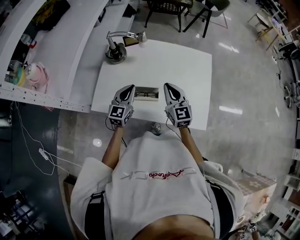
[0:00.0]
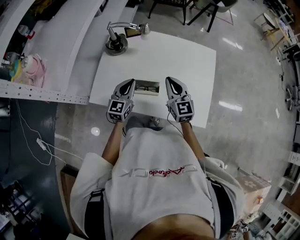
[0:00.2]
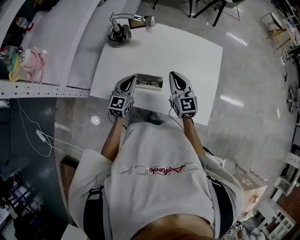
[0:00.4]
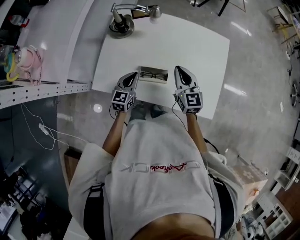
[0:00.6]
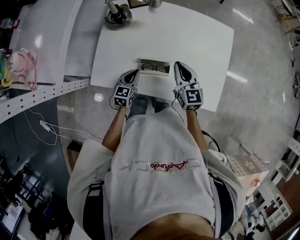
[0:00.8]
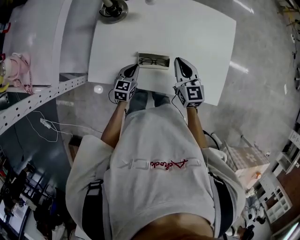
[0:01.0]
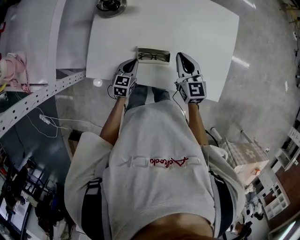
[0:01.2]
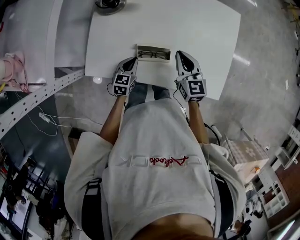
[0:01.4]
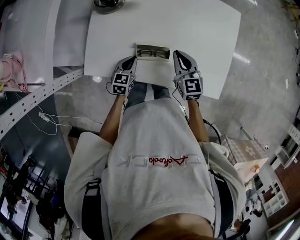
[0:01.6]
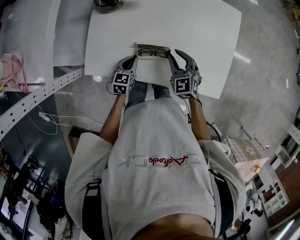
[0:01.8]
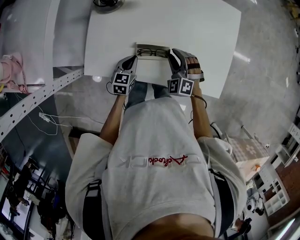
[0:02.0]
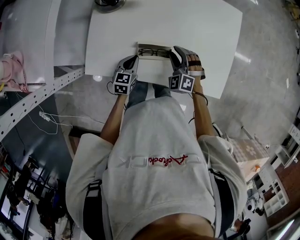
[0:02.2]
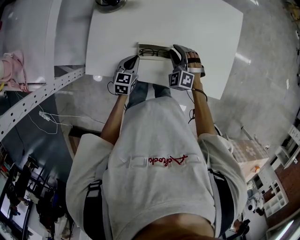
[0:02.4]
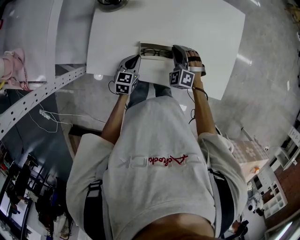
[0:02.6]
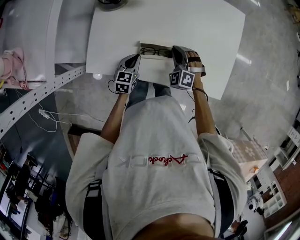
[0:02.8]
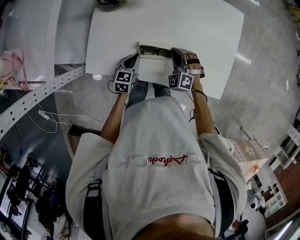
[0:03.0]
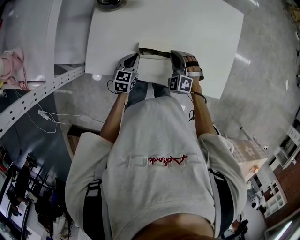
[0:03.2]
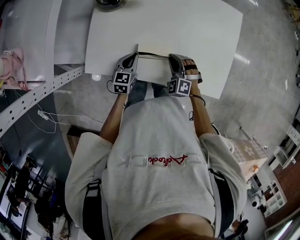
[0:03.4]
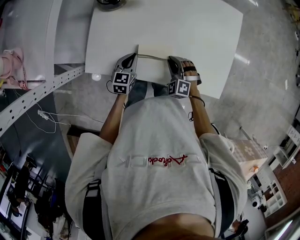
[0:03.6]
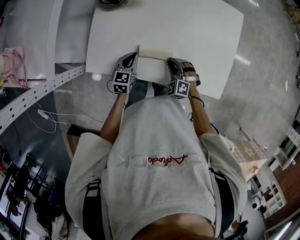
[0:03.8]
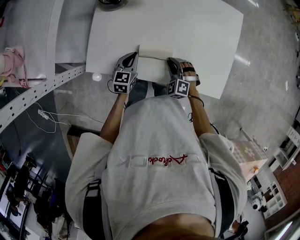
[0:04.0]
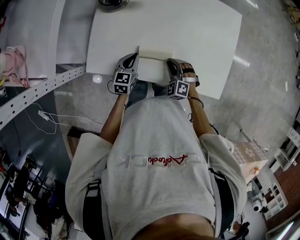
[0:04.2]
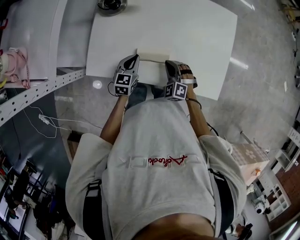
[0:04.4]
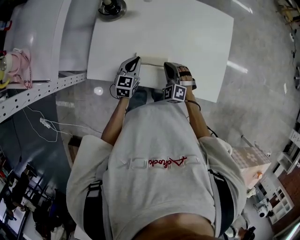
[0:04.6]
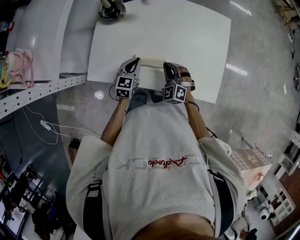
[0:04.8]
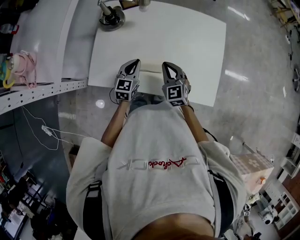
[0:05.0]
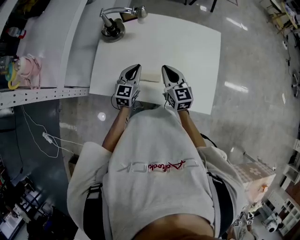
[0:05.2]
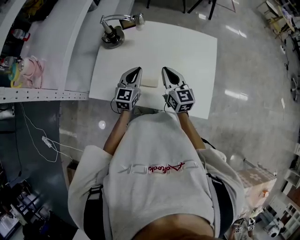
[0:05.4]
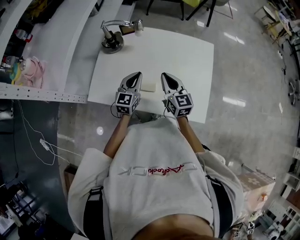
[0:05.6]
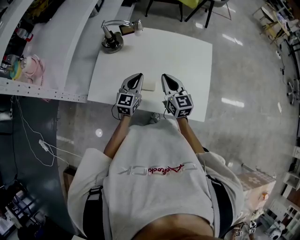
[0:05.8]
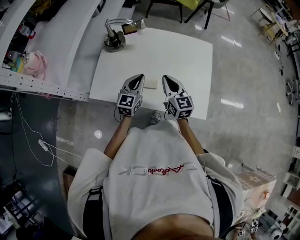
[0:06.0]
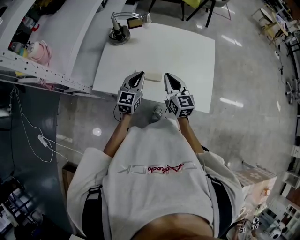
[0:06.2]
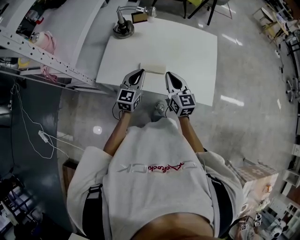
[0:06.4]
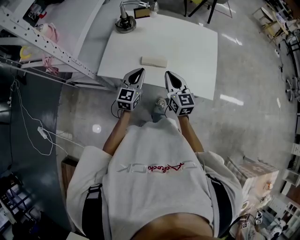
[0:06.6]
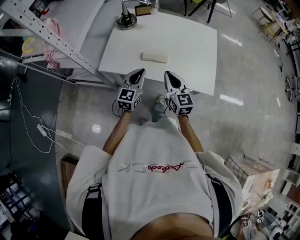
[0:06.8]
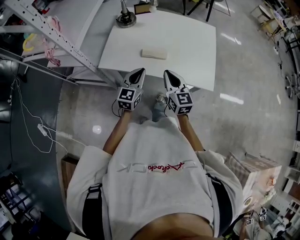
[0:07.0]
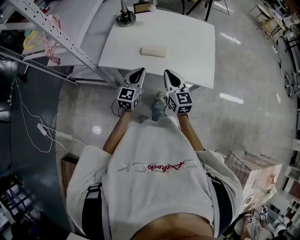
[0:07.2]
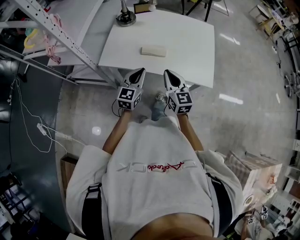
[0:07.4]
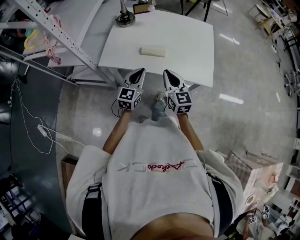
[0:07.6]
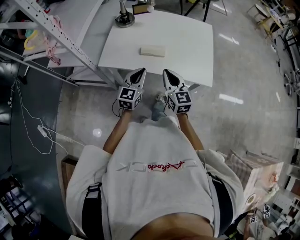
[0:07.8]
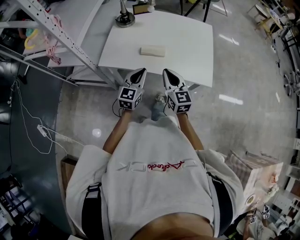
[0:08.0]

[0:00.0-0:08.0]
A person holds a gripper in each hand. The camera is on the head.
0:00.0 to 0:01.6: The left gripper is displaced downward by approximately 20 cm, and turns by roughly 30 degrees. The right gripper goes approximately 10 cm downward.
0:01.6 to 0:03.2: The right gripper is displaced downward by roughly 10 cm, rolls counterclockwise, seen from behind, by about 60 degrees, and opens, then closes again.
0:03.2 to 0:04.8: The left gripper moves upward, about 5 cm.
0:04.8 to 0:06.4: Both grippers travel together upward and backward, about 15 cm. The right gripper rolls clockwise, seen from behind, by roughly 50 degrees.
0:06.4 to 0:08.0: The two grippers go some 10 cm backward.

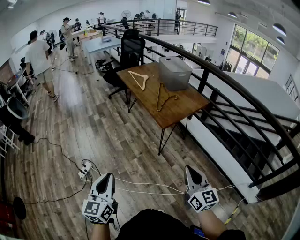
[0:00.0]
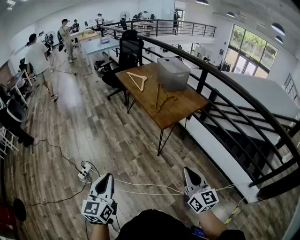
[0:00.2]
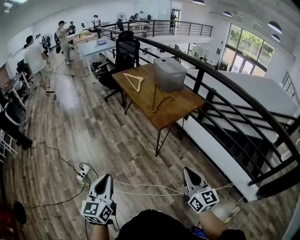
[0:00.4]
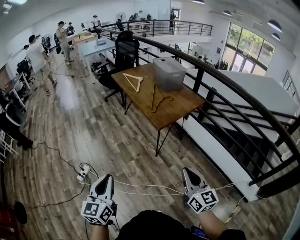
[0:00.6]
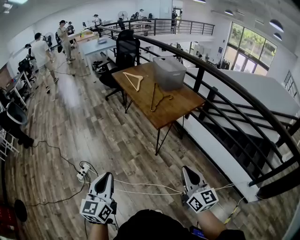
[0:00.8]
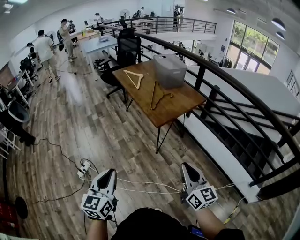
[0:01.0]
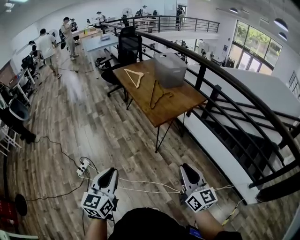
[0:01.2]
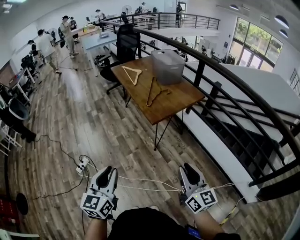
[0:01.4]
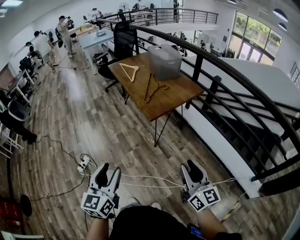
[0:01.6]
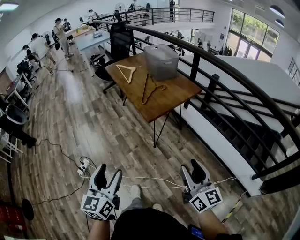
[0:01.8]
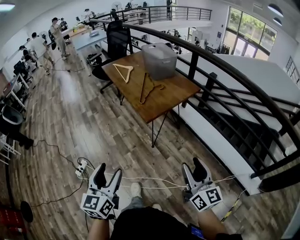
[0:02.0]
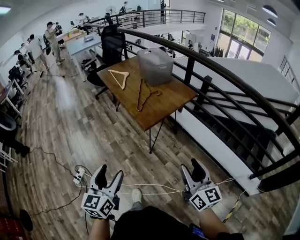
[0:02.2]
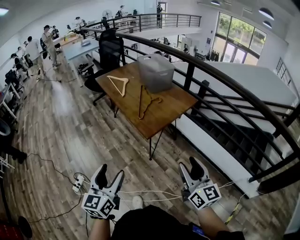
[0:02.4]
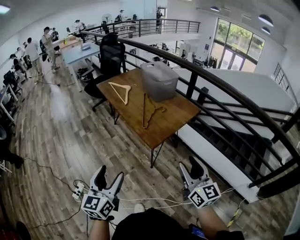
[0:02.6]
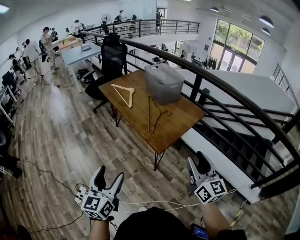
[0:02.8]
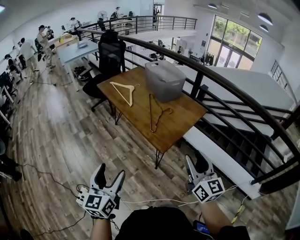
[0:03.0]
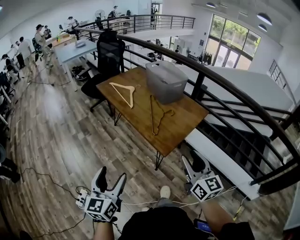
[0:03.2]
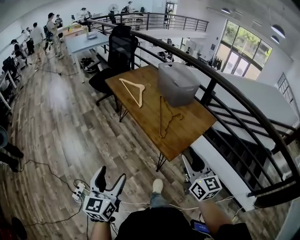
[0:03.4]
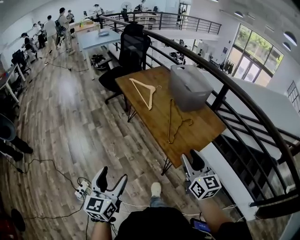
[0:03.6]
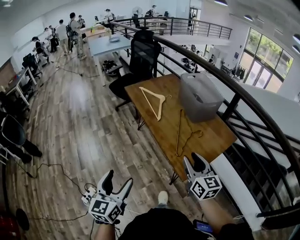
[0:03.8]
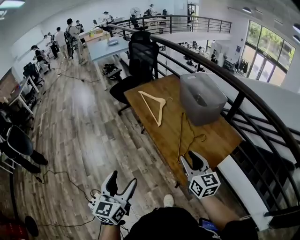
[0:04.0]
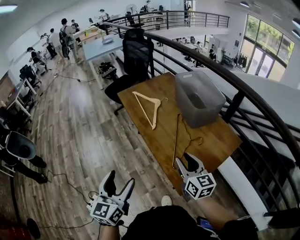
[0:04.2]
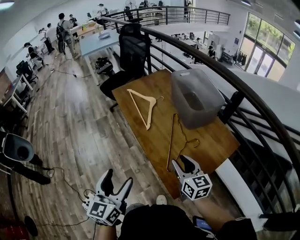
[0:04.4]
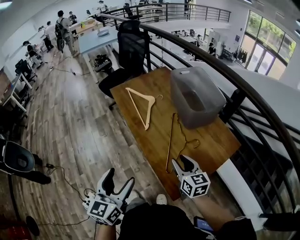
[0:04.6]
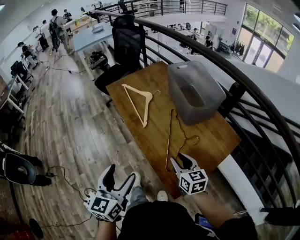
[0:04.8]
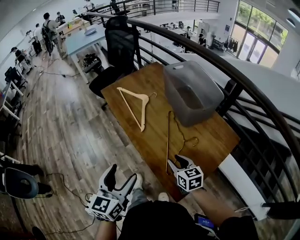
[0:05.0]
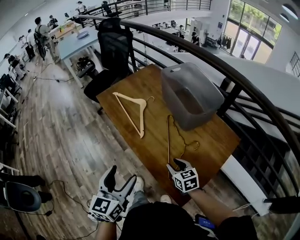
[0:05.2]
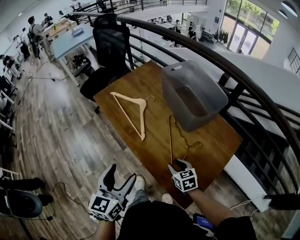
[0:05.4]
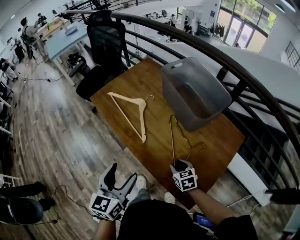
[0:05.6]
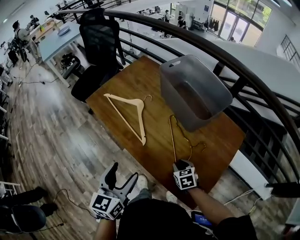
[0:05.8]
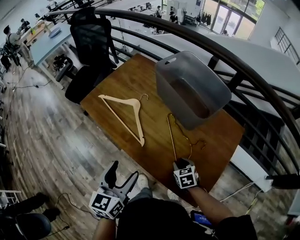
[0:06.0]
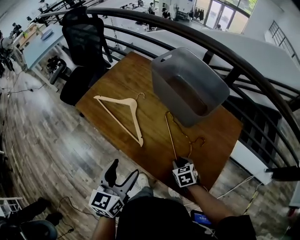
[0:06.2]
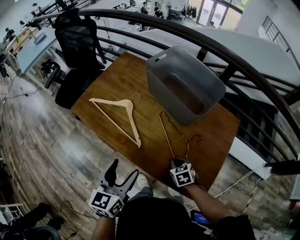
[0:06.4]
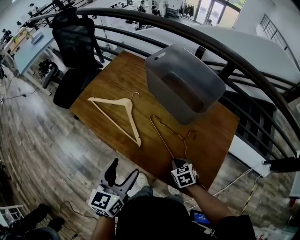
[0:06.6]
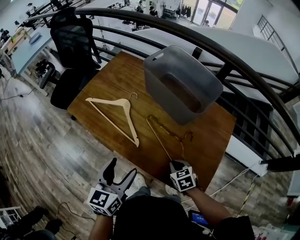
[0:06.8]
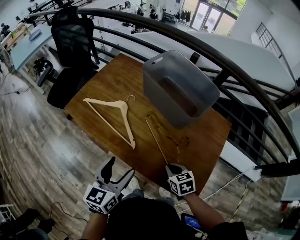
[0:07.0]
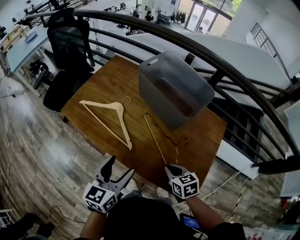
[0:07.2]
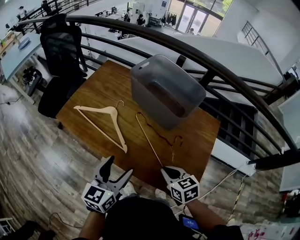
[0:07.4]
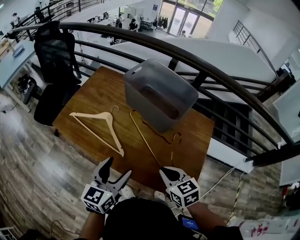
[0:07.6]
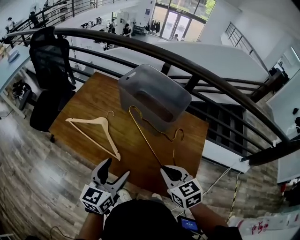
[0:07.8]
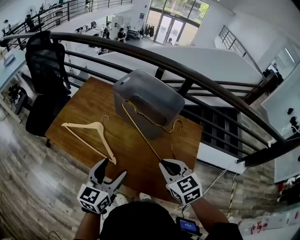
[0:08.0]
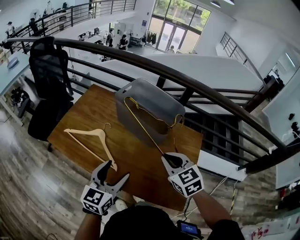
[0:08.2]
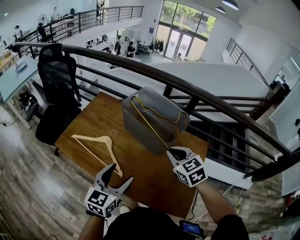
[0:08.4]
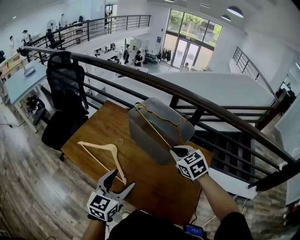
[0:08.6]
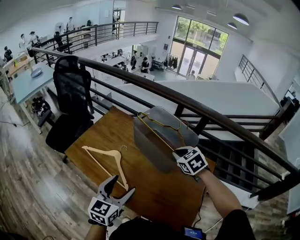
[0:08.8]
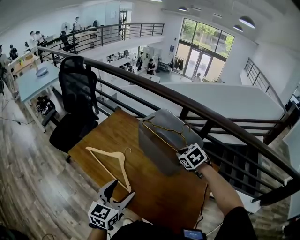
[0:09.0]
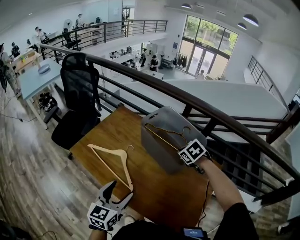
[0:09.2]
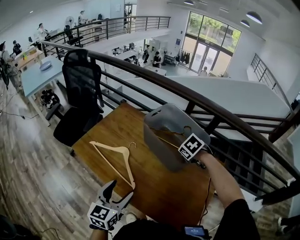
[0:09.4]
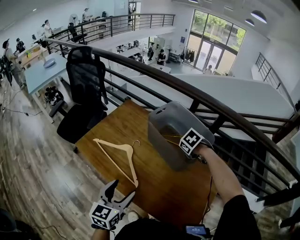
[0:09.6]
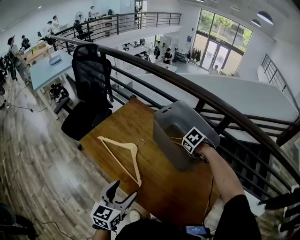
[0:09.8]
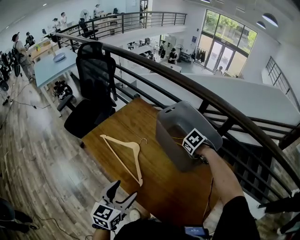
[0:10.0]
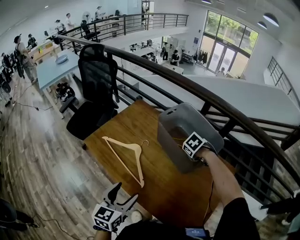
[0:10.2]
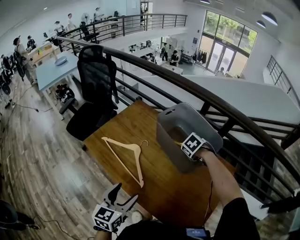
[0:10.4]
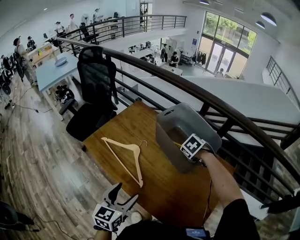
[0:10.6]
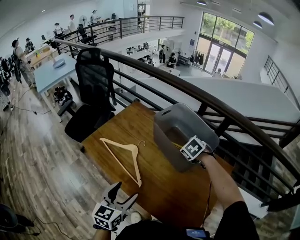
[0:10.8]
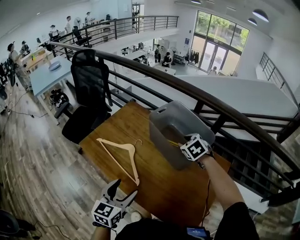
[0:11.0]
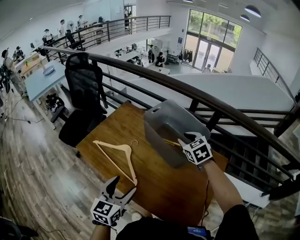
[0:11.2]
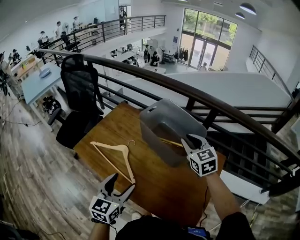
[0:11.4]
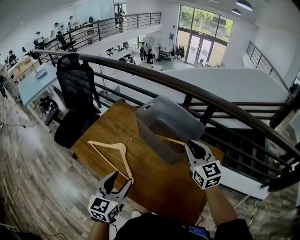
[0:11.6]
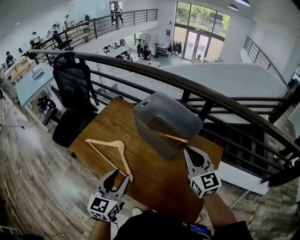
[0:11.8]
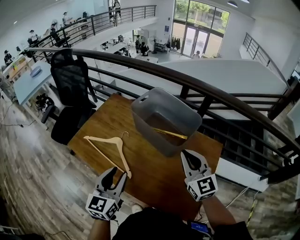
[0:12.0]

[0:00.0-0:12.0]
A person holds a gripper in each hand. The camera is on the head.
0:00.0 to 0:01.6: The two grippers go some 10 cm to the right. The left gripper opens up.
0:01.6 to 0:03.0: Both grippers move forward and to the left, some 30 cm. The left gripper opens up.
0:03.0 to 0:04.4: Both grippers move forward, some 30 cm. The right gripper rotates about 30 degrees.
0:04.4 to 0:06.0: The right gripper goes approximately 25 cm downward and forward, and tilts its fingers about 40 degrees downward, while the left gripper is displaced forward by about 25 cm, and swivels about 30 degrees.
0:06.0 to 0:07.6: The right gripper travels upward by some 20 cm; the left gripper changes place by approximately 5 cm, and changes its angle by about 20 degrees.
0:07.6 to 0:09.0: The right gripper shifts some 25 cm forward, and turns by approximately 30 degrees; the left gripper shifts by roughly 5 cm.
0:09.0 to 0:10.4: The right gripper is displaced downward by some 10 cm.
0:10.4 to 0:12.0: The right gripper changes place by about 25 cm, and tilts its fingers some 70 degrees upward. The left gripper moves roughly 5 cm, and closes its fingers.

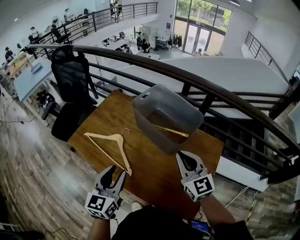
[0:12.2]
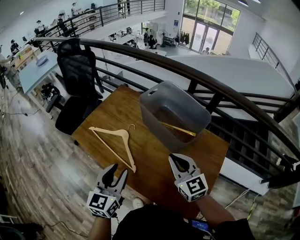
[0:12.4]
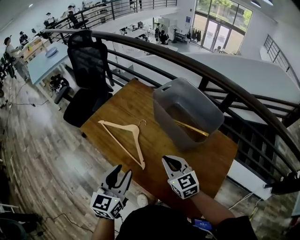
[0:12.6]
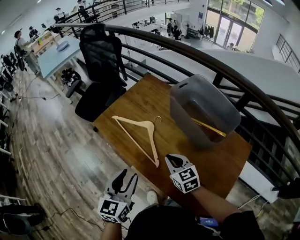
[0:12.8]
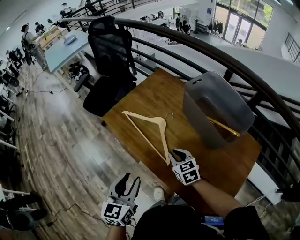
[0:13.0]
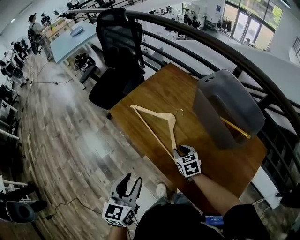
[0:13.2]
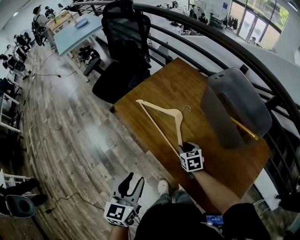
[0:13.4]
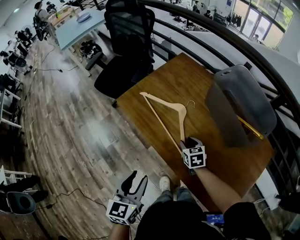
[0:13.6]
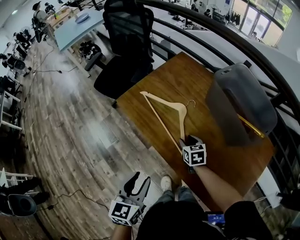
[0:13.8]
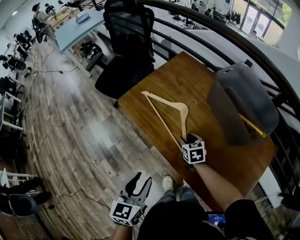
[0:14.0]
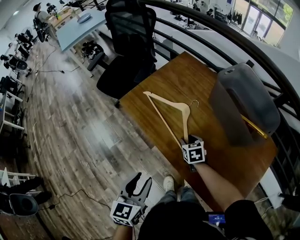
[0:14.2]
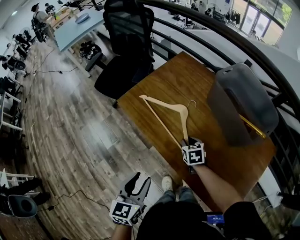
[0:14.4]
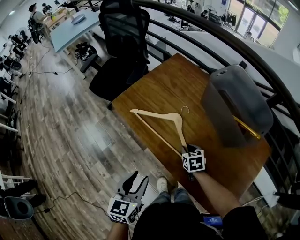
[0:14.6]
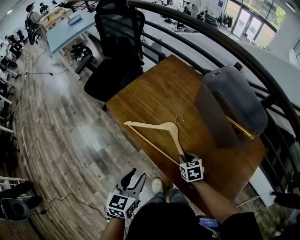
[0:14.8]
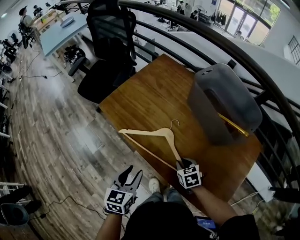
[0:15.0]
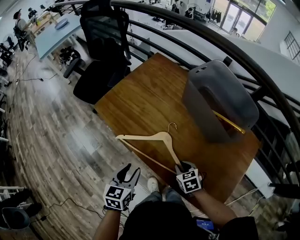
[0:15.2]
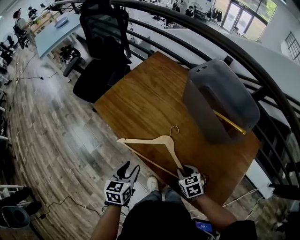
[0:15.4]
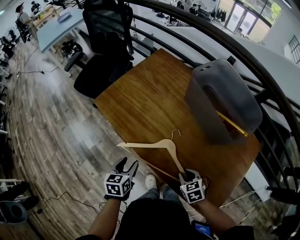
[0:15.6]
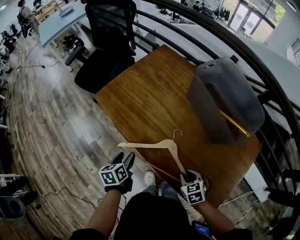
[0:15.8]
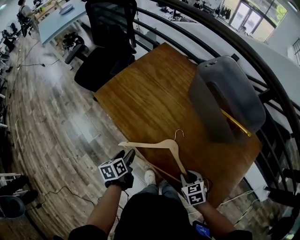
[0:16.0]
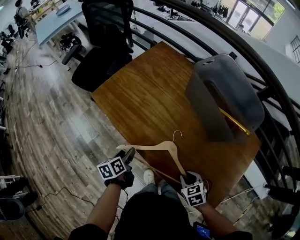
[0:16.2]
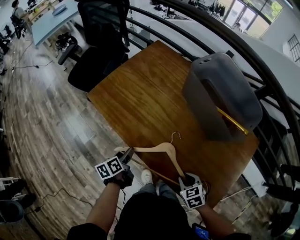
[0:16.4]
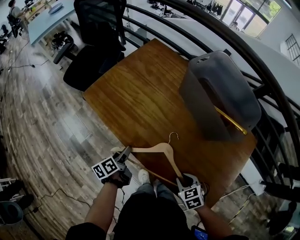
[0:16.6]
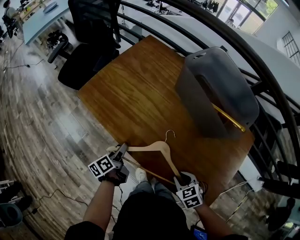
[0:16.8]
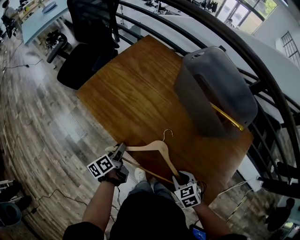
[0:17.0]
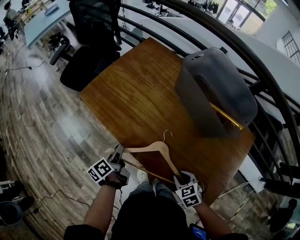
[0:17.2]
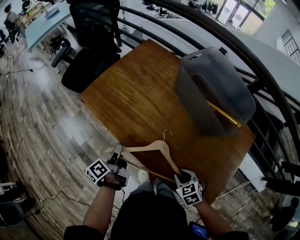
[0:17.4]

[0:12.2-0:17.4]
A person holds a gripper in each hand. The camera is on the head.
0:12.2 to 0:14.0: The right gripper heads downward, to the left and forward, covering some 40 cm, angles its fingers downward, by approximately 40 degrees, and opens its fingers. Meanwhile the left gripper heads to the left, downward and backward, covering roughly 20 cm, and turns by about 20 degrees.
0:14.0 to 0:15.6: The left gripper shifts about 15 cm downward, while the right gripper travels backward and to the right by about 20 cm.
0:15.6 to 0:17.4: The left gripper heads forward, covering roughly 5 cm, rotates around the line of its fingers by some 50 degrees, counterclockwise from behind, and closes up.
